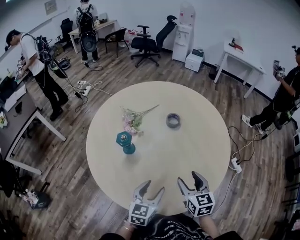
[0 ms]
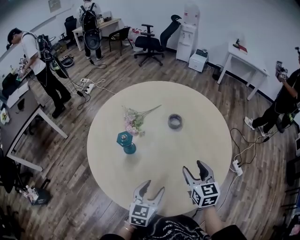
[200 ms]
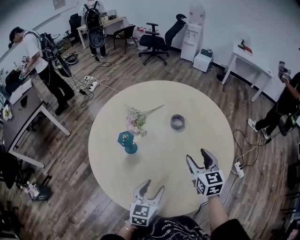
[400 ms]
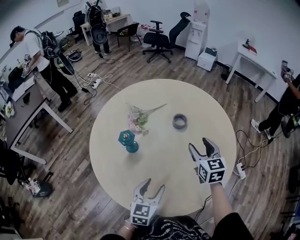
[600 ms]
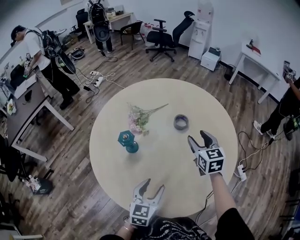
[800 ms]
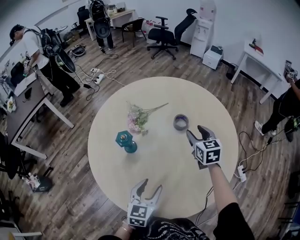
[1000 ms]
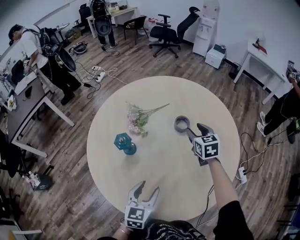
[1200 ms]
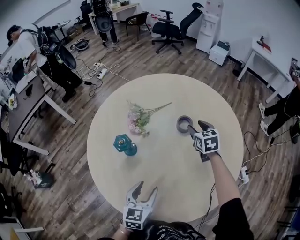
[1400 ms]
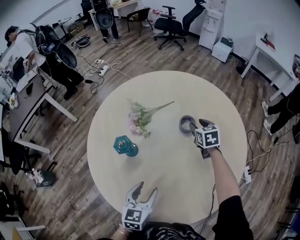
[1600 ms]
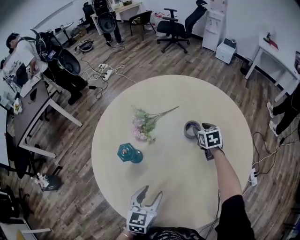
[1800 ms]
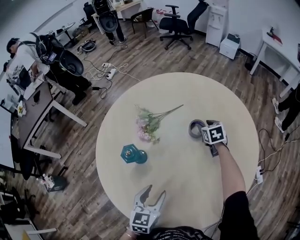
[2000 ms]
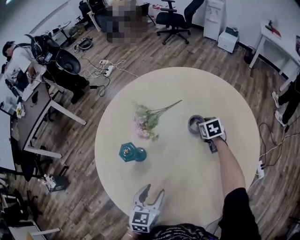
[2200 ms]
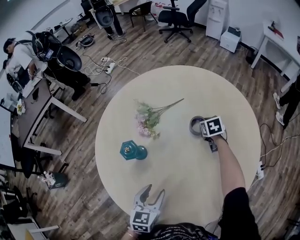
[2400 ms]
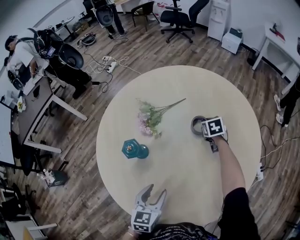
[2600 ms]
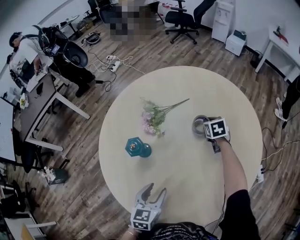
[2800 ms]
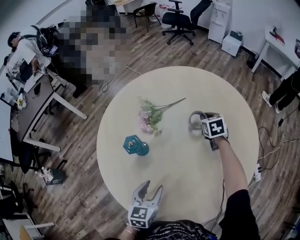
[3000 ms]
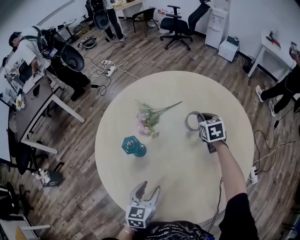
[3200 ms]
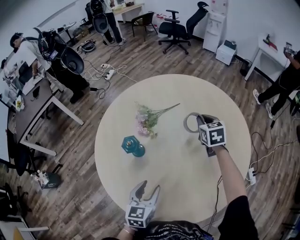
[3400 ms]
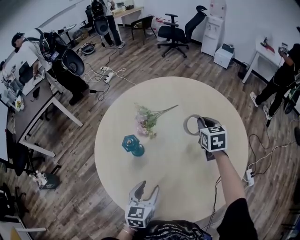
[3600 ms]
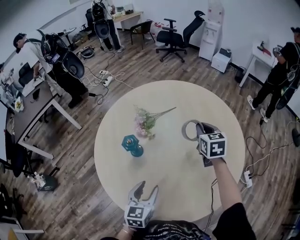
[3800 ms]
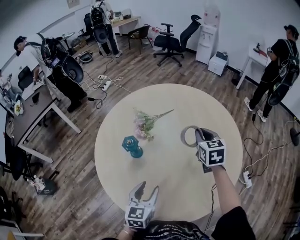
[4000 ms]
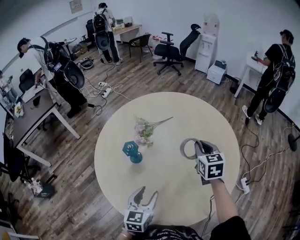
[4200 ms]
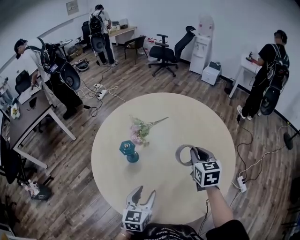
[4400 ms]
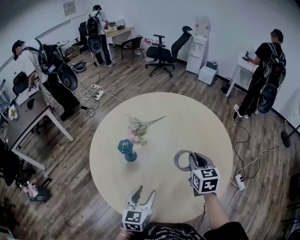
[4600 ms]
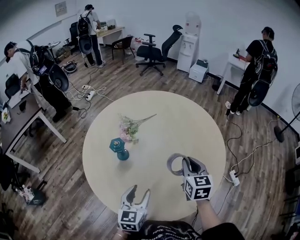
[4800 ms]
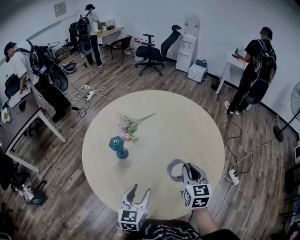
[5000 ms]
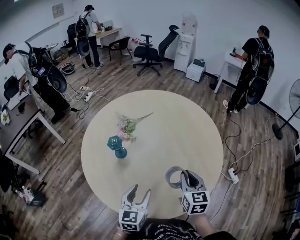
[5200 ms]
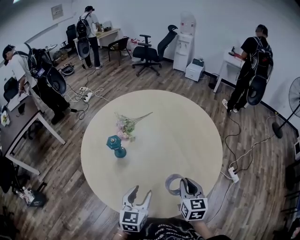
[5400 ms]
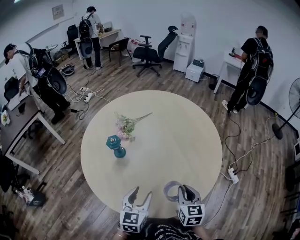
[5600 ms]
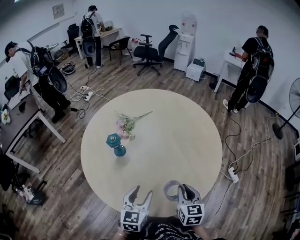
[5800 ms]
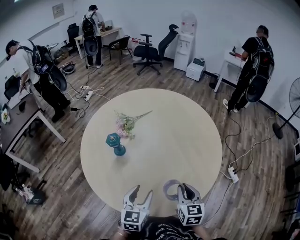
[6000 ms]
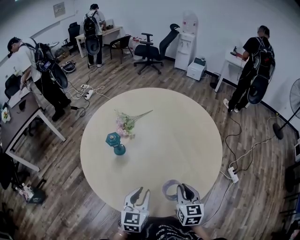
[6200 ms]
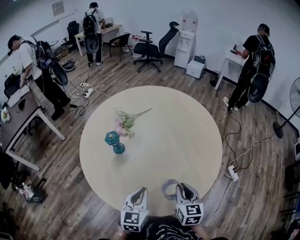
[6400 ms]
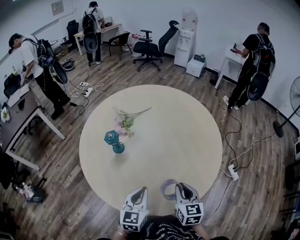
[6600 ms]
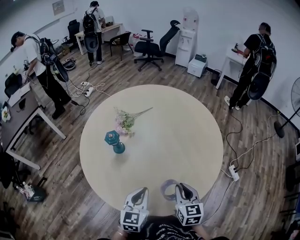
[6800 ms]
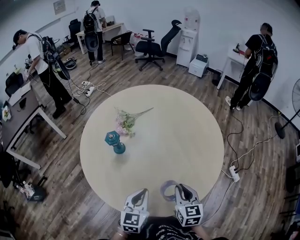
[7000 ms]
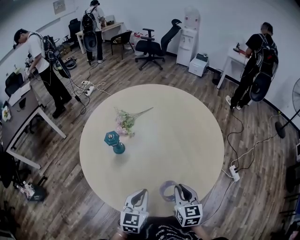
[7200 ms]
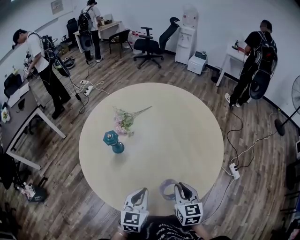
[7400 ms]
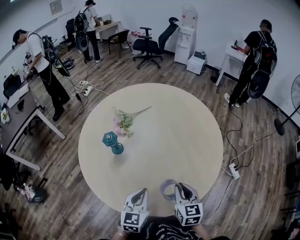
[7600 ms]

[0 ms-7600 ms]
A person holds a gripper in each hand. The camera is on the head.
0 ms to 1600 ms: The right gripper is displaced forward by some 40 cm; the left gripper heads forward, covering approximately 10 cm.
1600 ms to 3000 ms: The right gripper travels downward and back again, roughly 10 cm each way, and closes its fingers.
3000 ms to 4600 ms: The right gripper is displaced backward and upward by about 30 cm, and swivels some 20 degrees; the left gripper goes about 10 cm upward and backward.
4600 ms to 6000 ms: The left gripper changes place by roughly 5 cm, while the right gripper moves backward, roughly 20 cm.
6000 ms to 7600 ms: The left gripper closes its fingers.

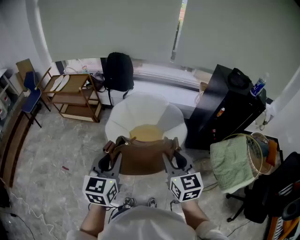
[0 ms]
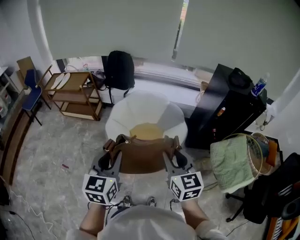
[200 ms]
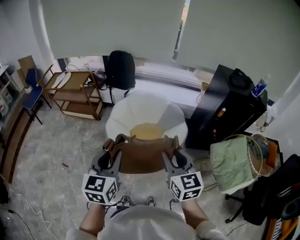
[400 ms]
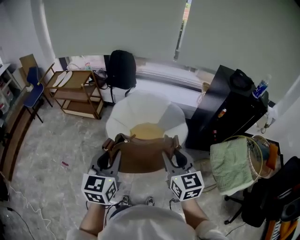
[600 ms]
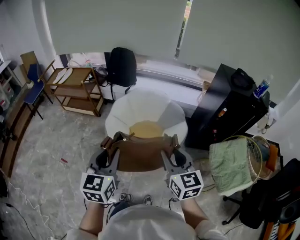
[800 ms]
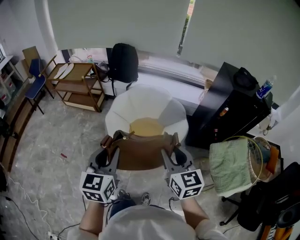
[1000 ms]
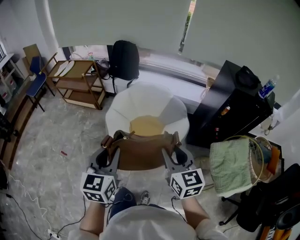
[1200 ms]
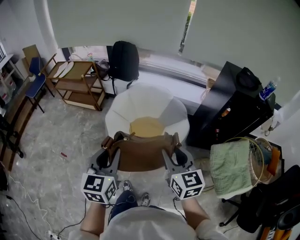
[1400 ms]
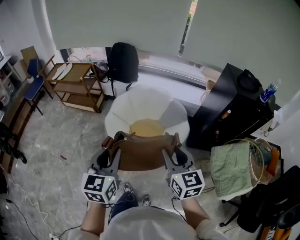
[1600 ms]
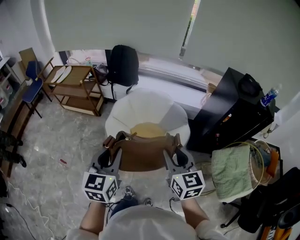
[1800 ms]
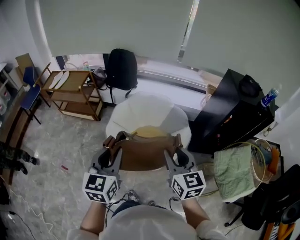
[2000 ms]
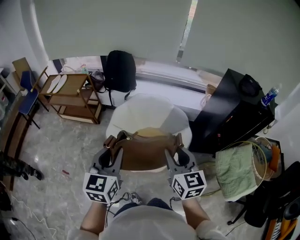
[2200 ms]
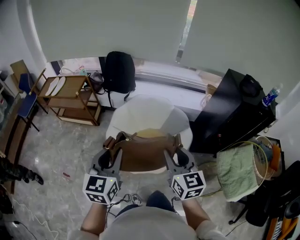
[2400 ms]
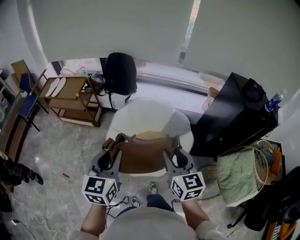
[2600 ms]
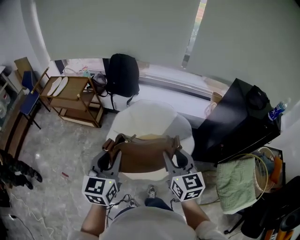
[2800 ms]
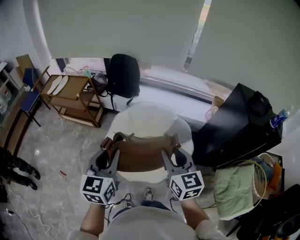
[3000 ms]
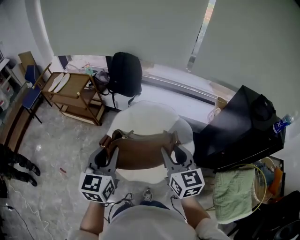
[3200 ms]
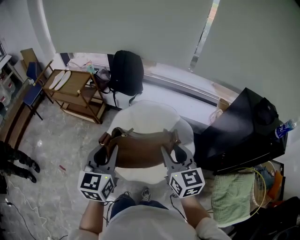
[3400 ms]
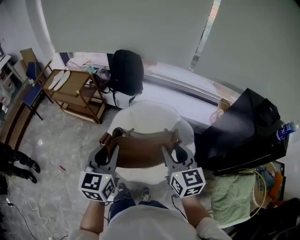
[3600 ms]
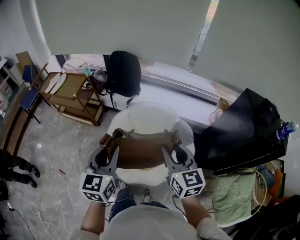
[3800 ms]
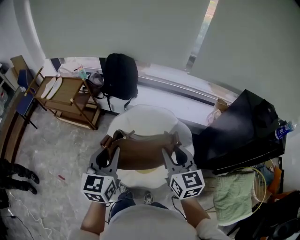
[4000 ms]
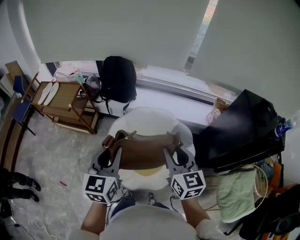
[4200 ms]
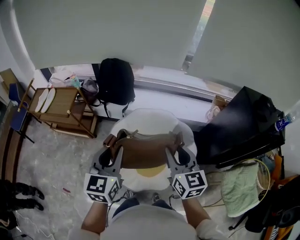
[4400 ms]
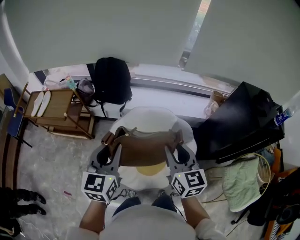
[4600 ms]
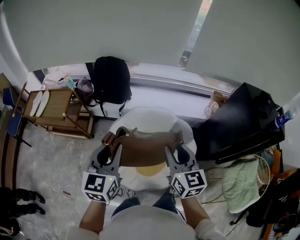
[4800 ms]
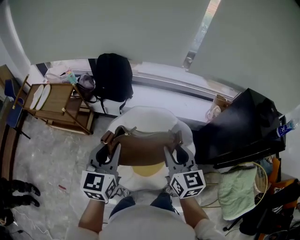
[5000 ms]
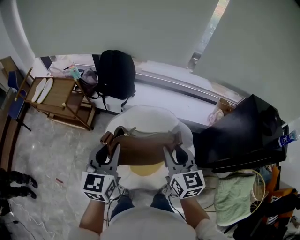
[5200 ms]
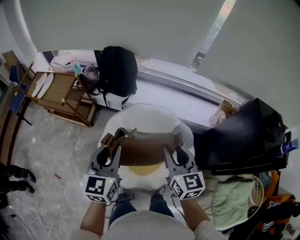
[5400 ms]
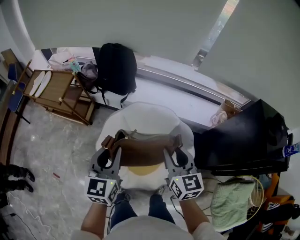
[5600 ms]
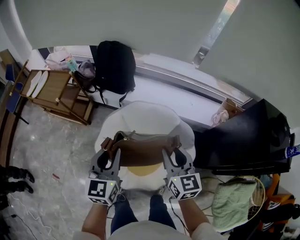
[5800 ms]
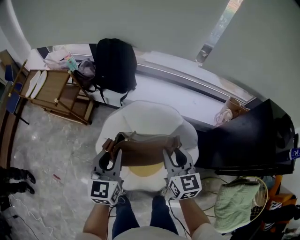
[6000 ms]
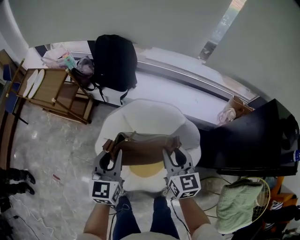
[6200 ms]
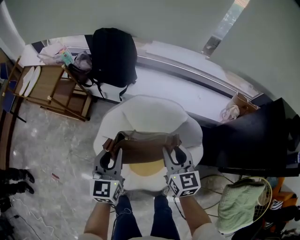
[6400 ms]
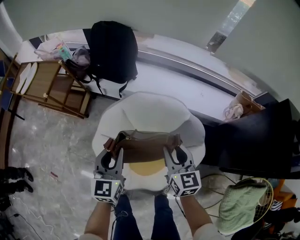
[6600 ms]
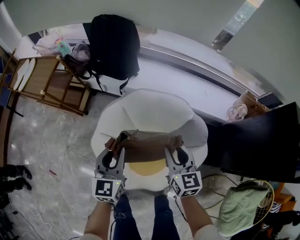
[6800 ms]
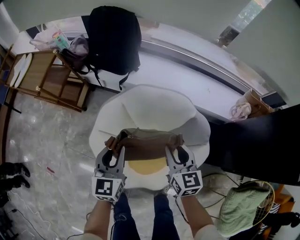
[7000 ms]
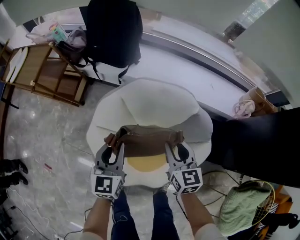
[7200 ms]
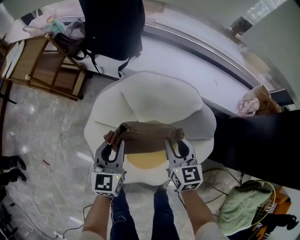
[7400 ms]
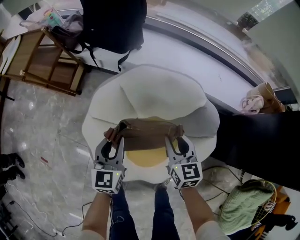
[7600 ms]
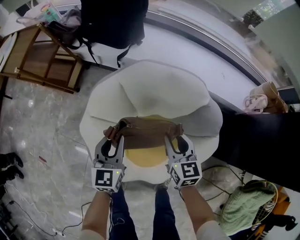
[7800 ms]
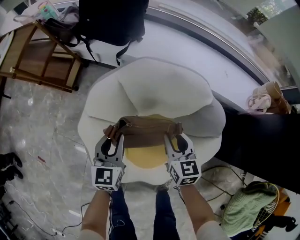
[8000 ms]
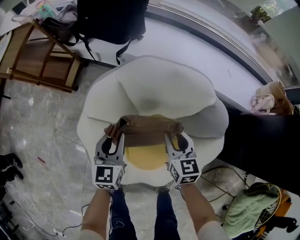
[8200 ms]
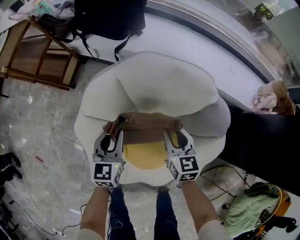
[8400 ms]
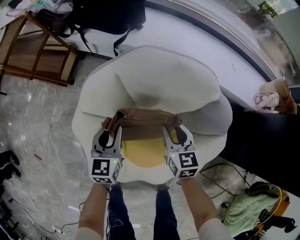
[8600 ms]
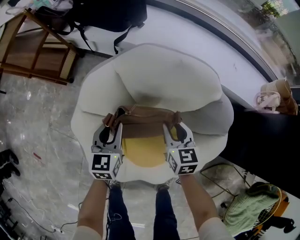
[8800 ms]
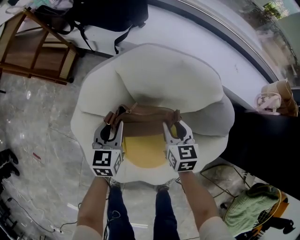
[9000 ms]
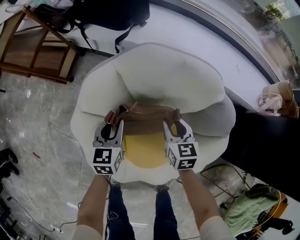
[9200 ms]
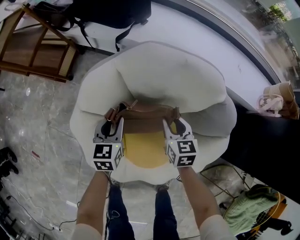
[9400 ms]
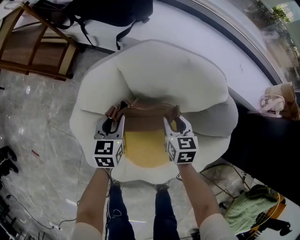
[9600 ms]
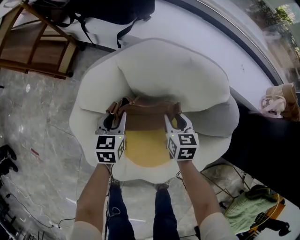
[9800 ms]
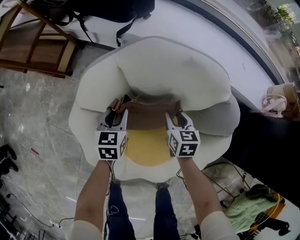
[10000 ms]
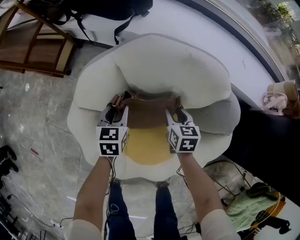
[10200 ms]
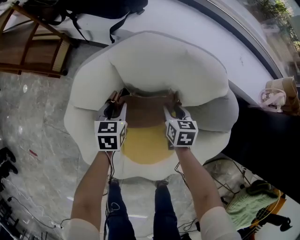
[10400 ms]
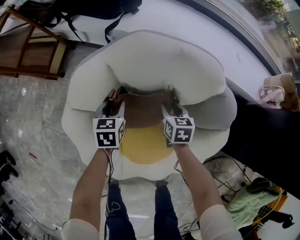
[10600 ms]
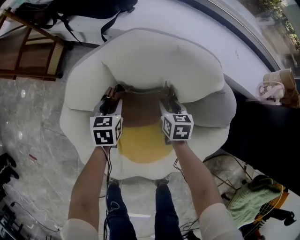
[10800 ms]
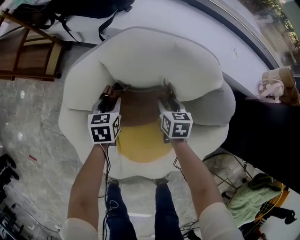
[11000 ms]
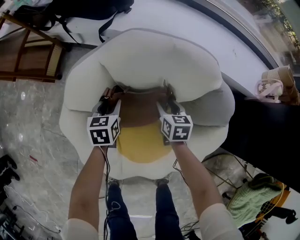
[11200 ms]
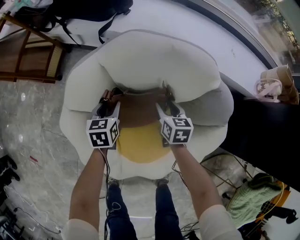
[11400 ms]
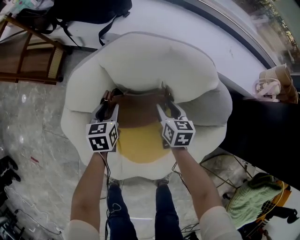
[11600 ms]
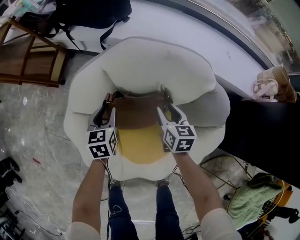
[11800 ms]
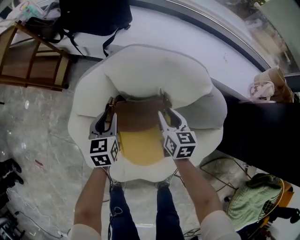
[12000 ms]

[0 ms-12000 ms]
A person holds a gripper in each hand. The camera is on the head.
0 ms to 1600 ms: The right gripper changes place by roughly 5 cm. The left gripper shifts by approximately 5 cm.
1600 ms to 3000 ms: Both grippers travel together forward, about 20 cm.
3000 ms to 4400 ms: Both grippers move forward, roughly 15 cm.
4400 ms to 6000 ms: The two grippers go approximately 15 cm downward and forward.
6000 ms to 7600 ms: Both grippers travel together downward, roughly 30 cm.
7600 ms to 9000 ms: The grippers both shift downward by approximately 15 cm.
9000 ms to 10400 ms: The grippers both shift downward by approximately 10 cm.
10400 ms to 12000 ms: Both grippers move upward, approximately 10 cm.

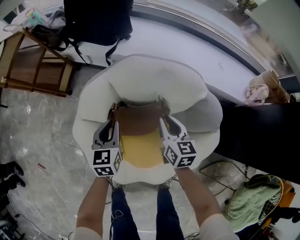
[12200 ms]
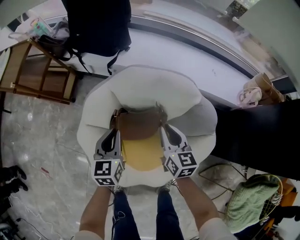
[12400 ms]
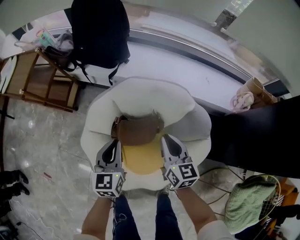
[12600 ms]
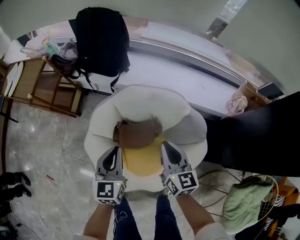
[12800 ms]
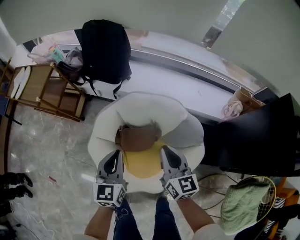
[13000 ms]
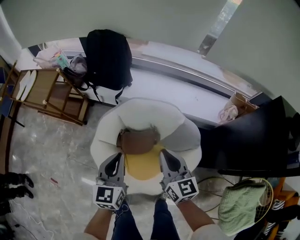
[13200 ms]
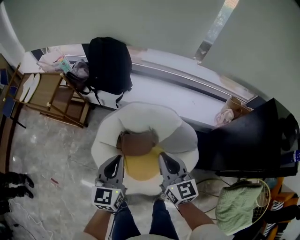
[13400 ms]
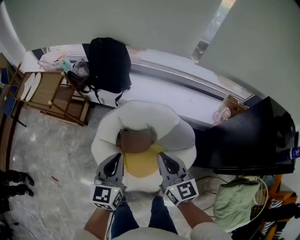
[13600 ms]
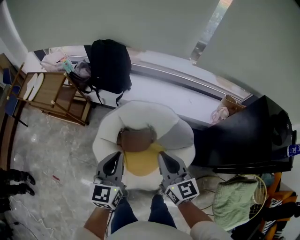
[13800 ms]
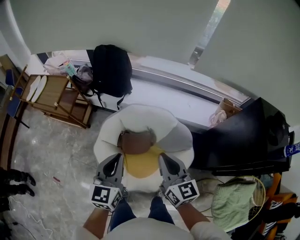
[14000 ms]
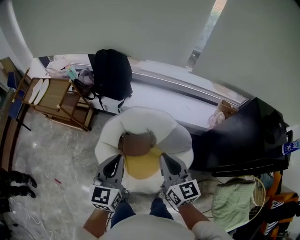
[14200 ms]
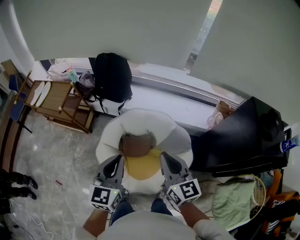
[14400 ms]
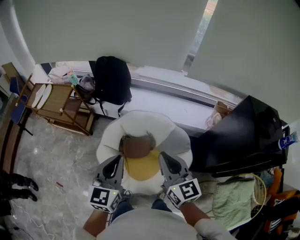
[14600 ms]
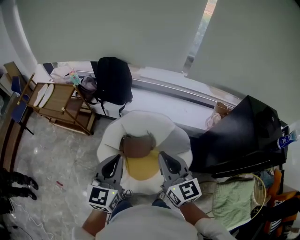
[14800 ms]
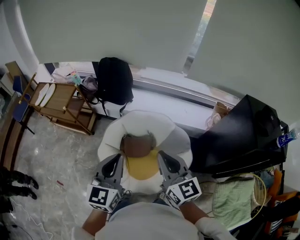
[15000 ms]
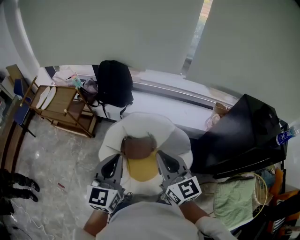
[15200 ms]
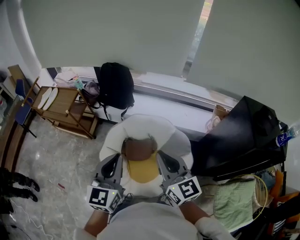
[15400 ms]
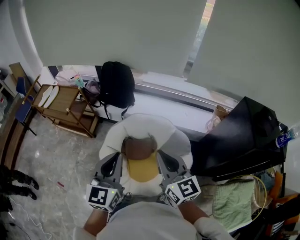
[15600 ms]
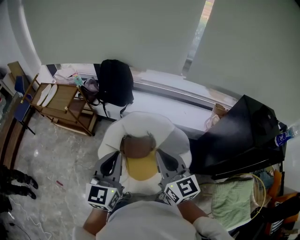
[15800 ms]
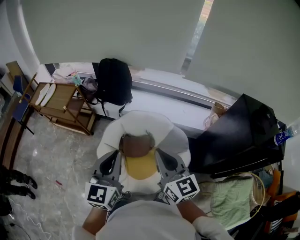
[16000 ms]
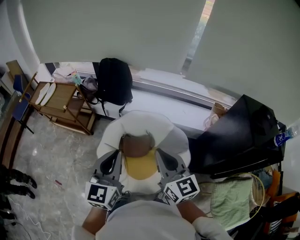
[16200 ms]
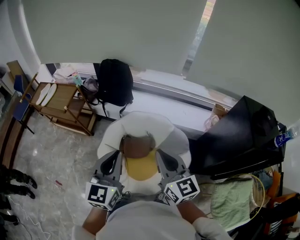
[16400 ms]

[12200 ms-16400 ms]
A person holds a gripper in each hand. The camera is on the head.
12200 ms to 13600 ms: Both grippers travel together upward, roughly 40 cm. The right gripper rotates approximately 20 degrees.
13600 ms to 15000 ms: The grippers both shift upward and backward by about 15 cm.
15000 ms to 16400 ms: The grippers make only small movements.
